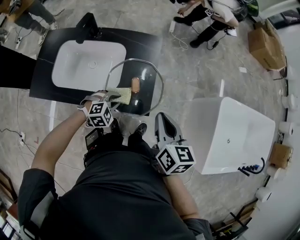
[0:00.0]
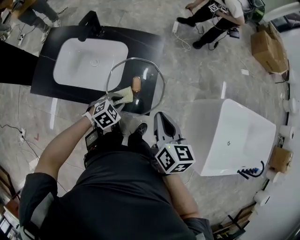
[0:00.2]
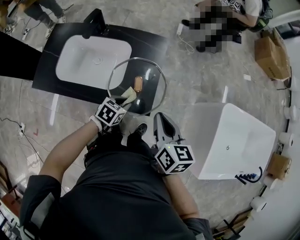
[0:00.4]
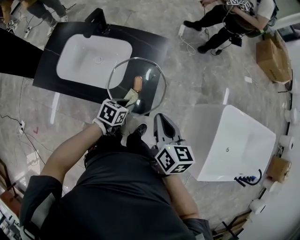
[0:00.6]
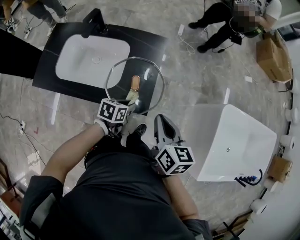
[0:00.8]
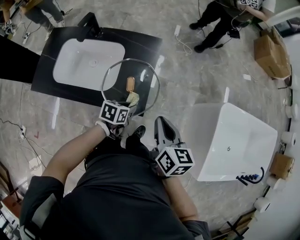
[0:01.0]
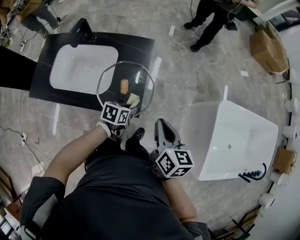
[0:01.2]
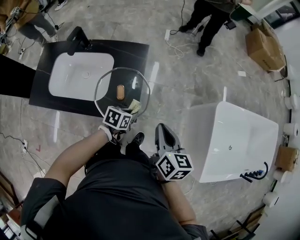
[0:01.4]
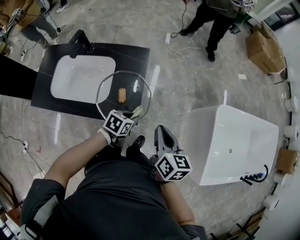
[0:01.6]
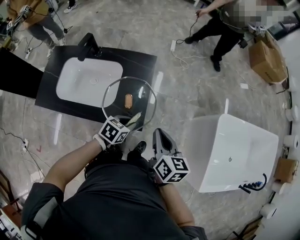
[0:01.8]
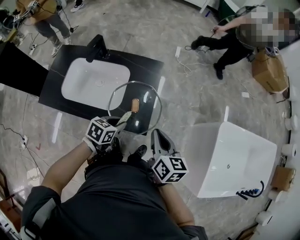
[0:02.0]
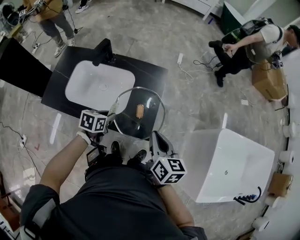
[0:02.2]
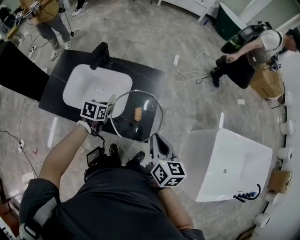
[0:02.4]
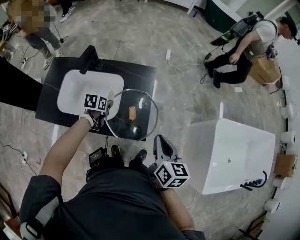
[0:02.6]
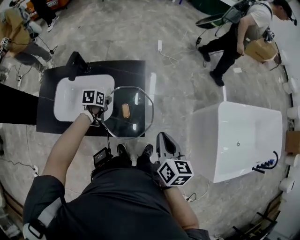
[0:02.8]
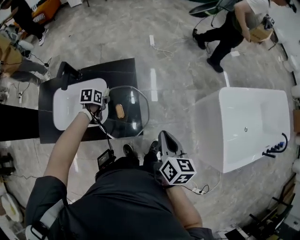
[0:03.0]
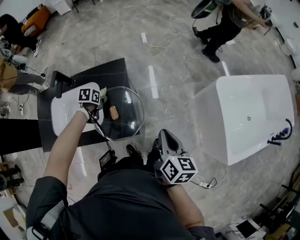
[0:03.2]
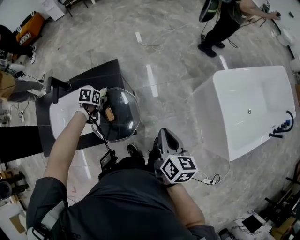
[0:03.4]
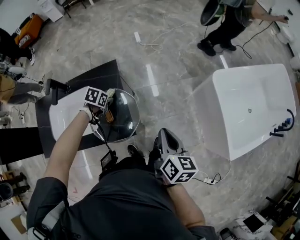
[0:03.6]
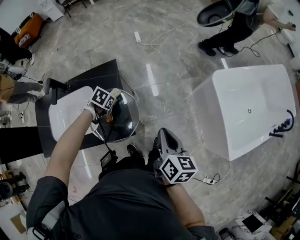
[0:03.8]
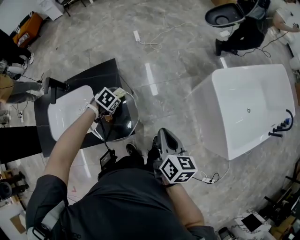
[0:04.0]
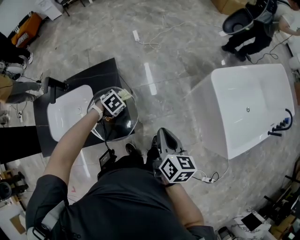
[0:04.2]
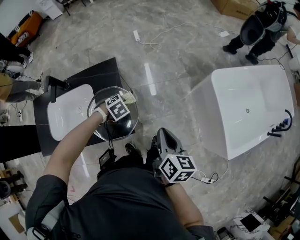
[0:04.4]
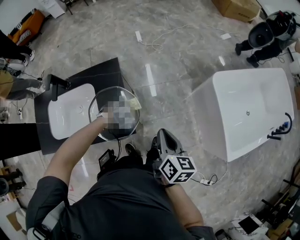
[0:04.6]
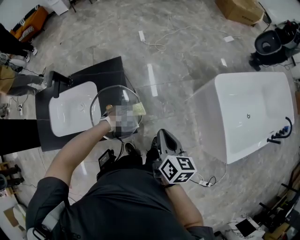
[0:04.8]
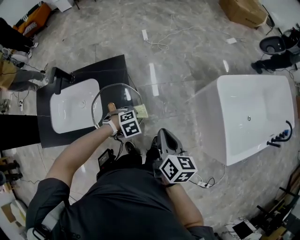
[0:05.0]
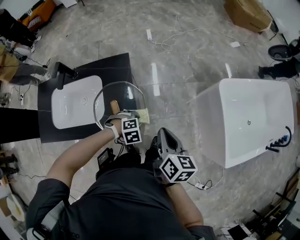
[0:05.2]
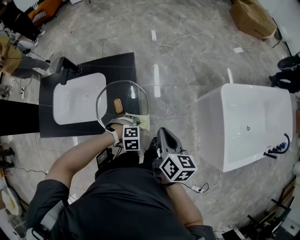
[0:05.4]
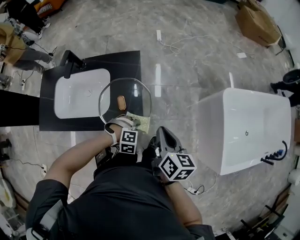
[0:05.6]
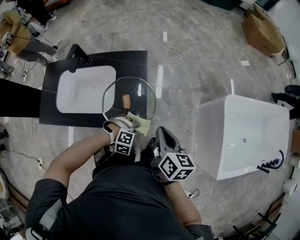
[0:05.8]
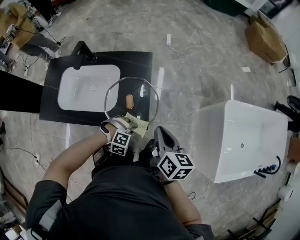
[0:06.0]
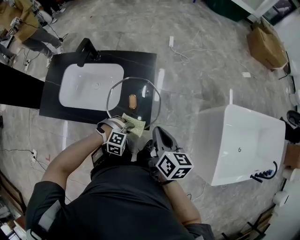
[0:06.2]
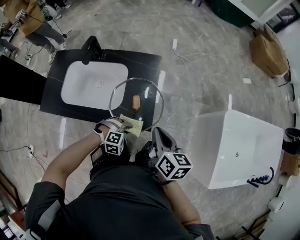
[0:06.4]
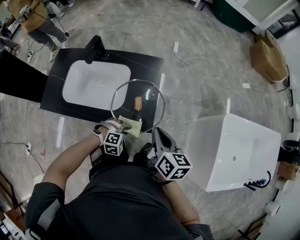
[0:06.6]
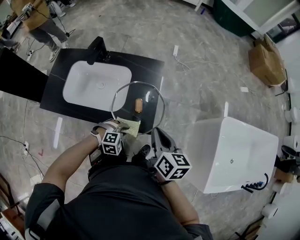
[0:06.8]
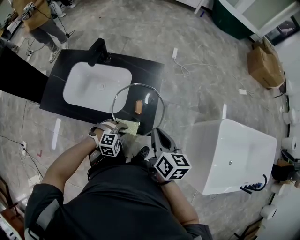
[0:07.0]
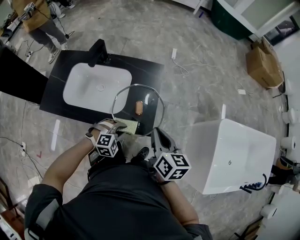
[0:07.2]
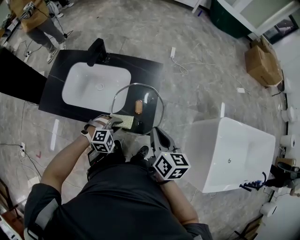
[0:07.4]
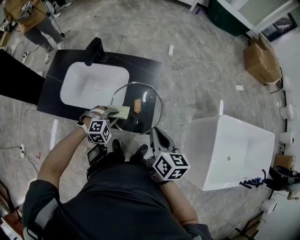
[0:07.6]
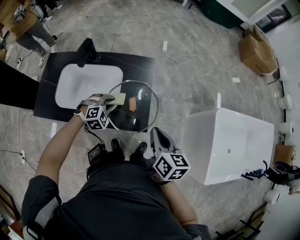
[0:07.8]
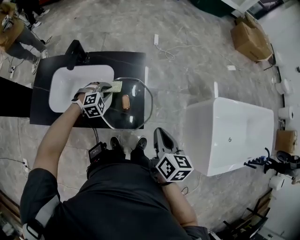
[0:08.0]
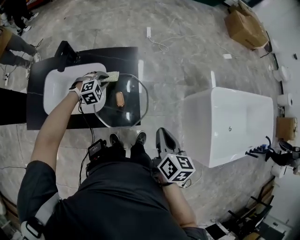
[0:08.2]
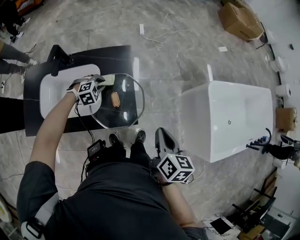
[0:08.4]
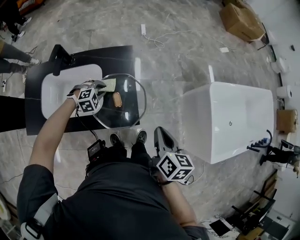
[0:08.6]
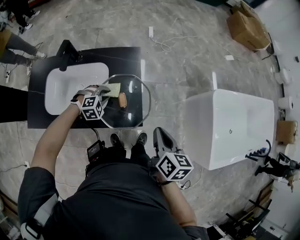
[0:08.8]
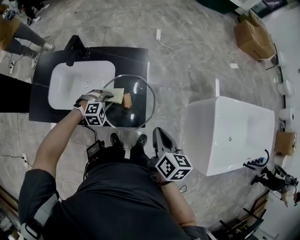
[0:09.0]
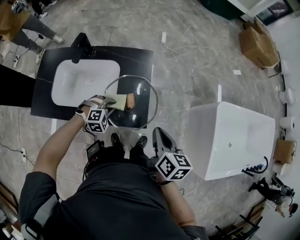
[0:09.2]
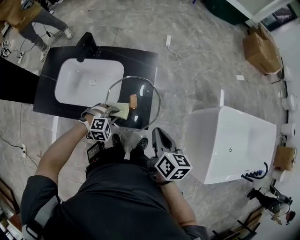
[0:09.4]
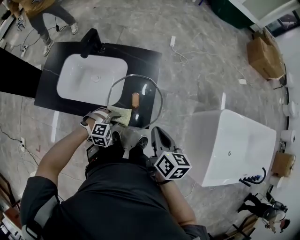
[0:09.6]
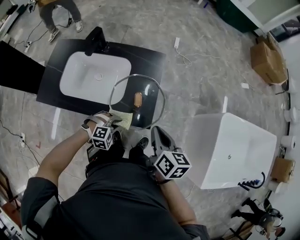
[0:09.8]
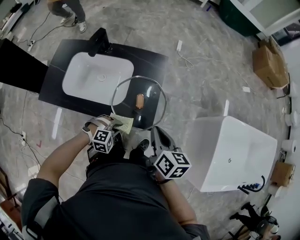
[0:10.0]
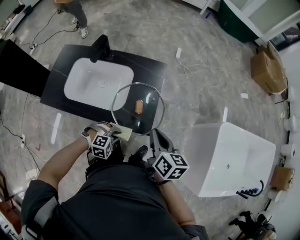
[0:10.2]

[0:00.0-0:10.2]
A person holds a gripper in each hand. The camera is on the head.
0:00.0 to 0:01.4: Both grippers travel together to the right, about 10 cm. The left gripper rotates around the line of its fingers by some 70 degrees, counterclockwise from behind.
0:01.4 to 0:03.0: The left gripper moves to the left and forward, roughly 25 cm. Meanwhile the right gripper goes to the left and returns, about 10 cm each way.
0:03.0 to 0:04.4: The right gripper moves about 5 cm; the left gripper ends up approximately 20 cm from where it was, and twists about 70 degrees clockwise, seen from behind.
0:04.4 to 0:05.8: The left gripper ends up roughly 15 cm from where it was, and swivels about 40 degrees. The right gripper moves roughly 10 cm.
0:05.8 to 0:07.2: Both grippers move to the left, approximately 10 cm. The left gripper swivels some 30 degrees.
0:07.2 to 0:08.8: The left gripper travels forward by approximately 15 cm. Meanwhile the right gripper shifts roughly 5 cm to the right.
0:08.8 to 0:10.2: The left gripper travels backward by approximately 20 cm. Meanwhile the right gripper travels to the left by about 5 cm.

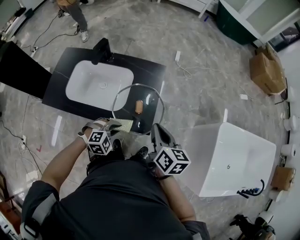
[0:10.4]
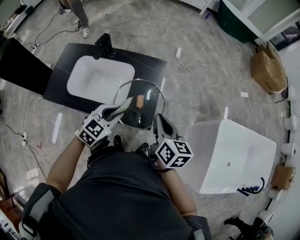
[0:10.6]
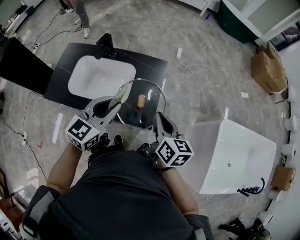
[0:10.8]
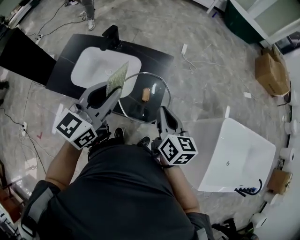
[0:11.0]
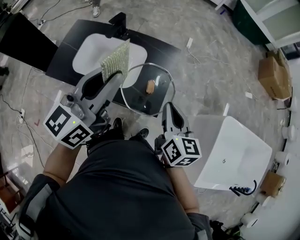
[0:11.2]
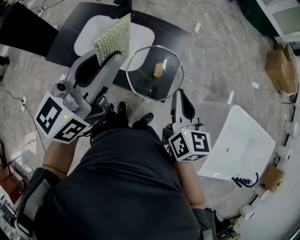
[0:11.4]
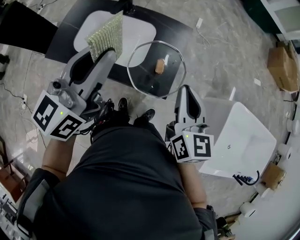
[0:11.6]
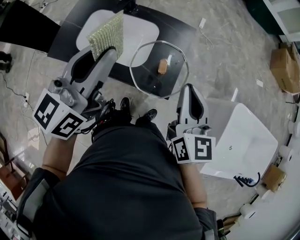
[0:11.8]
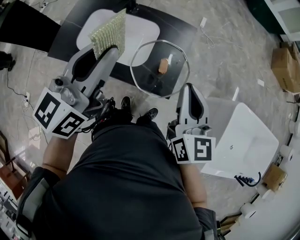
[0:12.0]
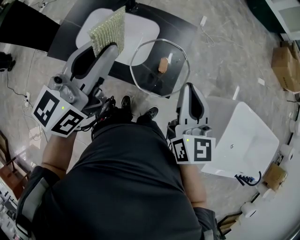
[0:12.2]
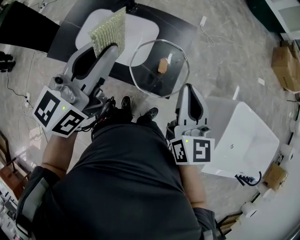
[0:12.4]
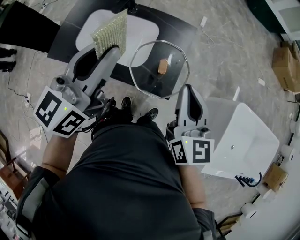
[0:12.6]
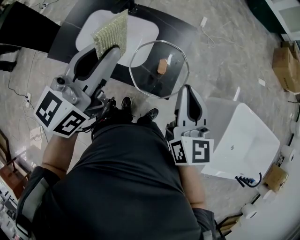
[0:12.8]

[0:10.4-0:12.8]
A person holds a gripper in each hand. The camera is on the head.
0:10.4 to 0:11.6: The left gripper heads upward, covering approximately 35 cm, and points its fingers approximately 60 degrees further upward; the right gripper heads upward, covering some 10 cm, and changes its angle by some 20 degrees.
0:11.6 to 0:12.8: The grippers stay close to where they were, moving slightly.

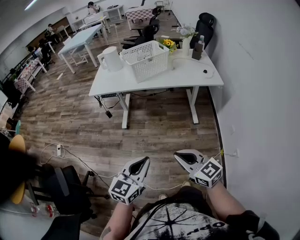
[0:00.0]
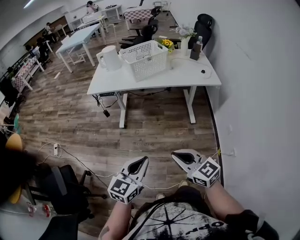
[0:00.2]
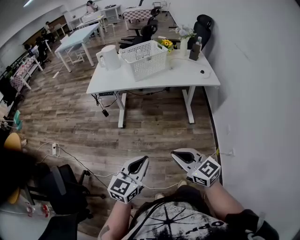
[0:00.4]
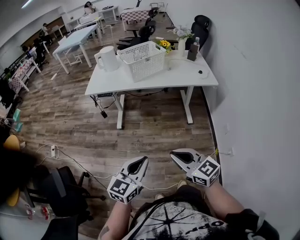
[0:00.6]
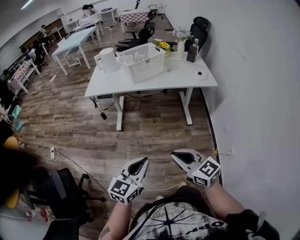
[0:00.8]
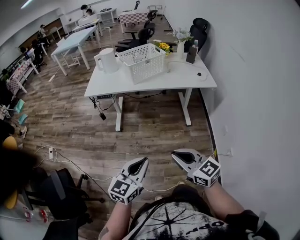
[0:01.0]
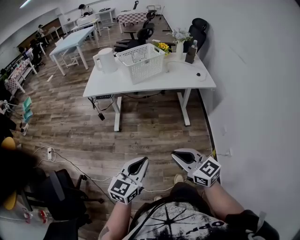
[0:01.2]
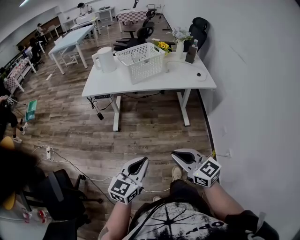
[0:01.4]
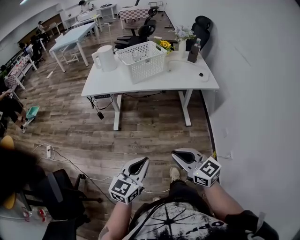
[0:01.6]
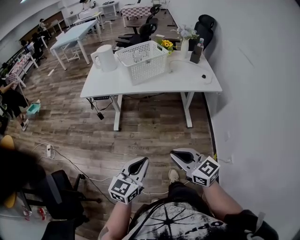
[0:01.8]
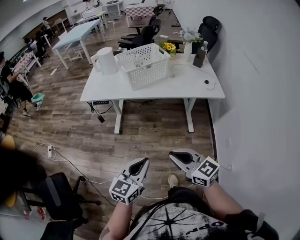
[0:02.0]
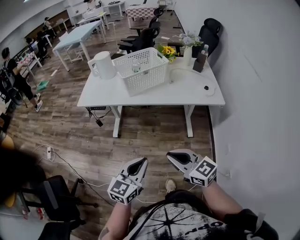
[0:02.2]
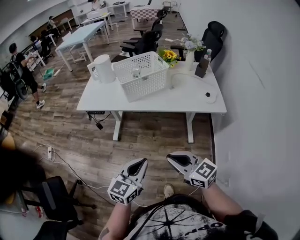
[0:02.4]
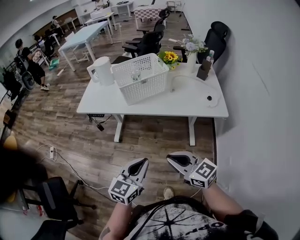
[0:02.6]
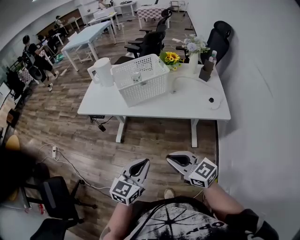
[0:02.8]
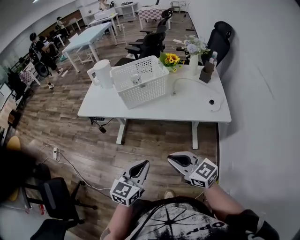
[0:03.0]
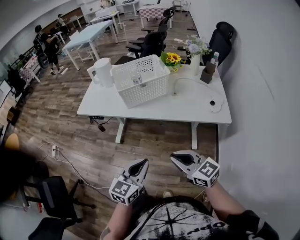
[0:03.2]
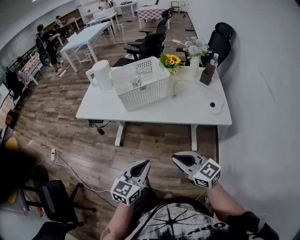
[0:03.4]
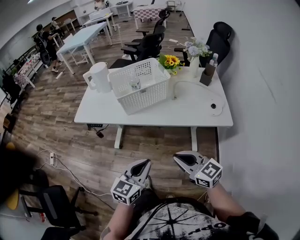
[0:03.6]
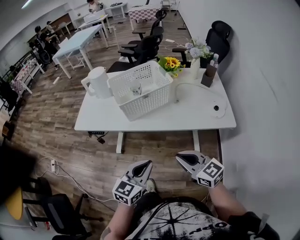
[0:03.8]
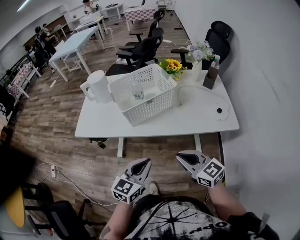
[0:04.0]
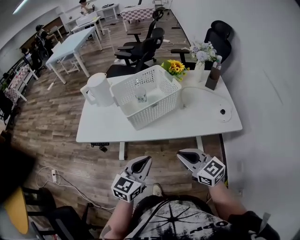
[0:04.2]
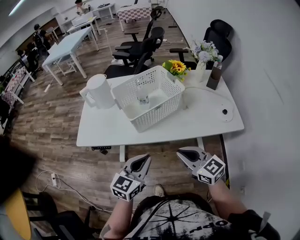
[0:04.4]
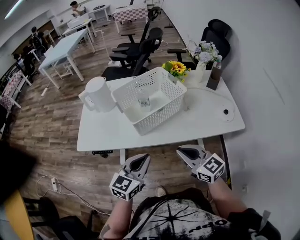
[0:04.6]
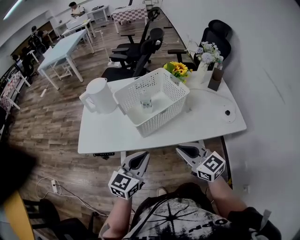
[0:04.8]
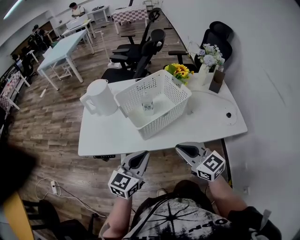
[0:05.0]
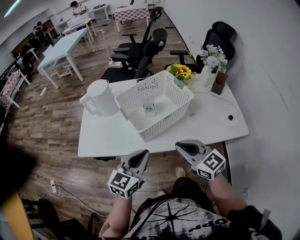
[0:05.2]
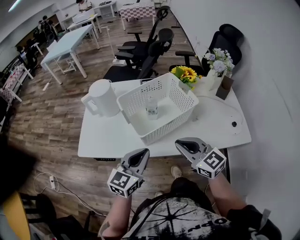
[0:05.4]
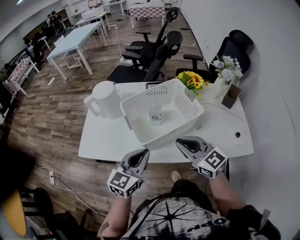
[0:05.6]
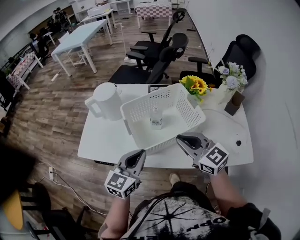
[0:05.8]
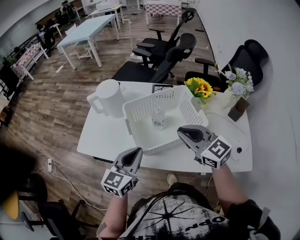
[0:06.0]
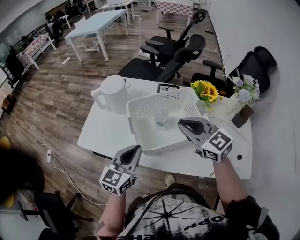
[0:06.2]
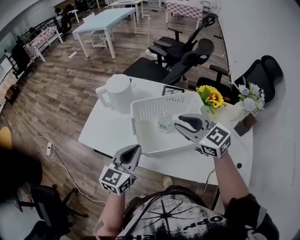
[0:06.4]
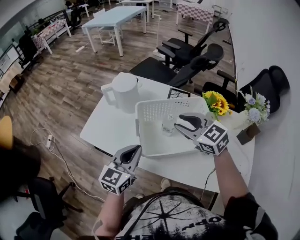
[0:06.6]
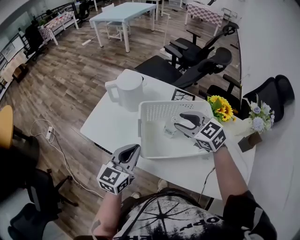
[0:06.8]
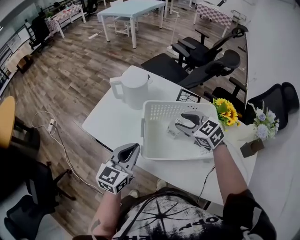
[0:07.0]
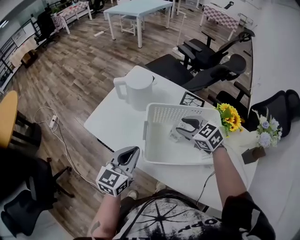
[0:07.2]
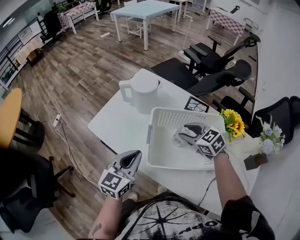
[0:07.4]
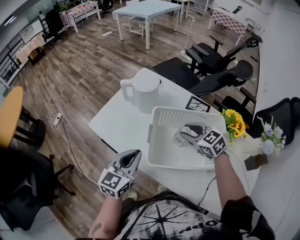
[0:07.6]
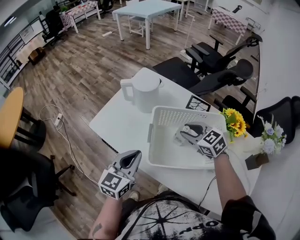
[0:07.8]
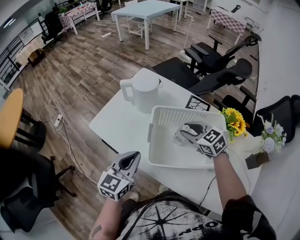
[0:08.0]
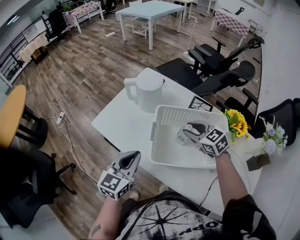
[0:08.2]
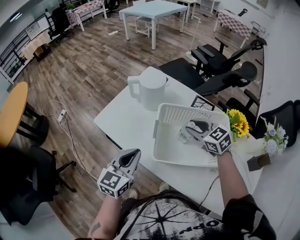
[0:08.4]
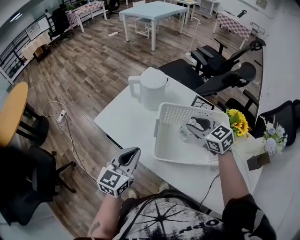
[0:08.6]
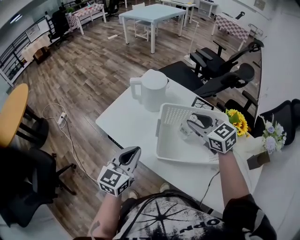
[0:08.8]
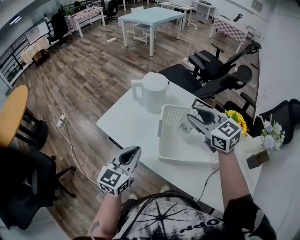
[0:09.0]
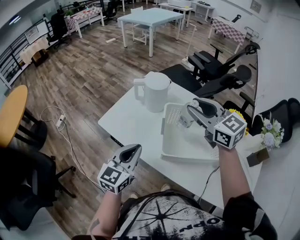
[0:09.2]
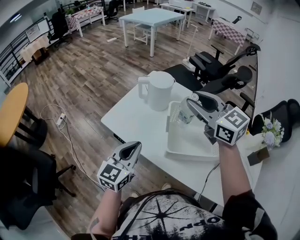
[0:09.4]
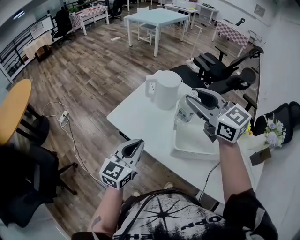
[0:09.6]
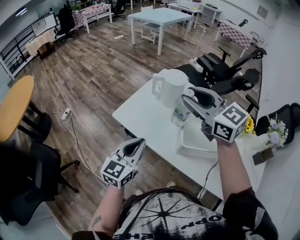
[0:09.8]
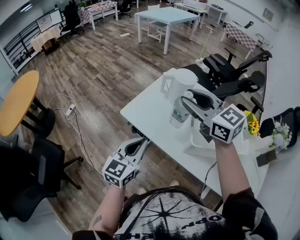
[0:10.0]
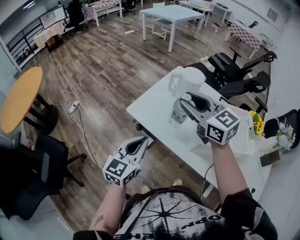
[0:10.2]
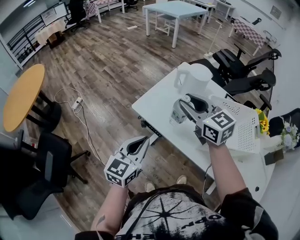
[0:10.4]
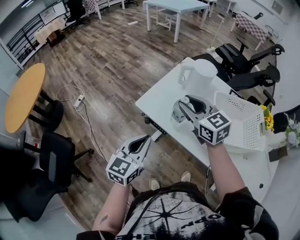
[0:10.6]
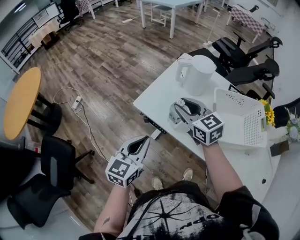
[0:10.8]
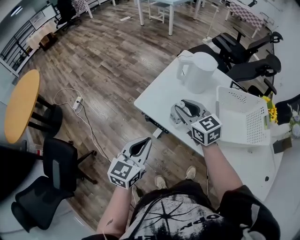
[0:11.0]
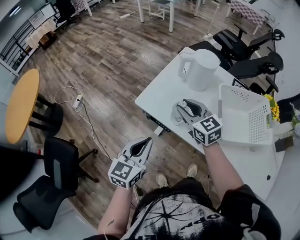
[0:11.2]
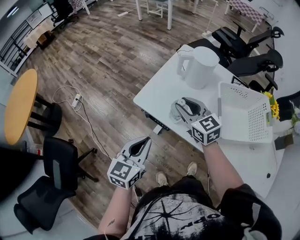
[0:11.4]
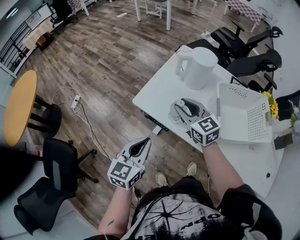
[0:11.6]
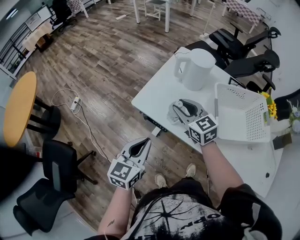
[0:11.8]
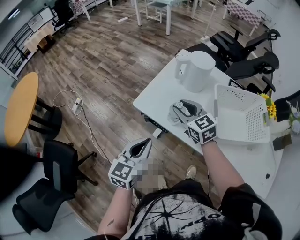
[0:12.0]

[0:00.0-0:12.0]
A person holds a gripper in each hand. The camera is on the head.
0:00.0 to 0:01.6: The grippers make only small movements.
0:01.6 to 0:03.0: Both grippers travel together forward and to the right, roughly 25 cm.
0:03.0 to 0:04.4: The right gripper travels forward by roughly 20 cm. Meanwhile the left gripper goes about 25 cm forward and to the left.
0:04.4 to 0:06.0: Both grippers move forward, roughly 20 cm.
0:06.0 to 0:07.6: The right gripper shifts approximately 20 cm forward and downward, changes its angle by roughly 30 degrees, and opens up; the left gripper travels forward by approximately 5 cm, and changes its angle by roughly 20 degrees.
0:07.6 to 0:09.0: The right gripper heads upward, covering about 15 cm; the left gripper shifts by roughly 5 cm.
0:09.0 to 0:10.4: Both grippers move to the left, roughly 20 cm.
0:10.4 to 0:12.0: The right gripper shifts approximately 15 cm downward.
